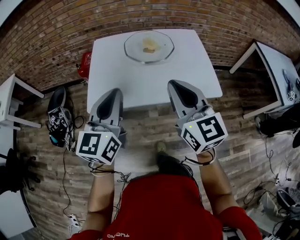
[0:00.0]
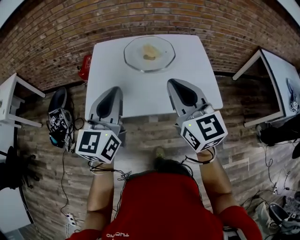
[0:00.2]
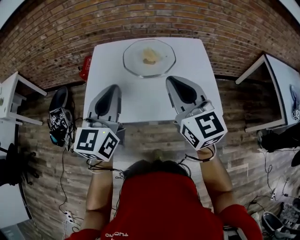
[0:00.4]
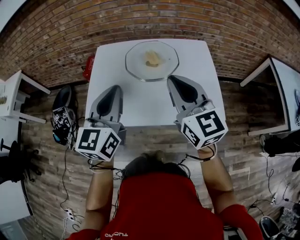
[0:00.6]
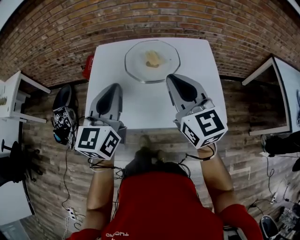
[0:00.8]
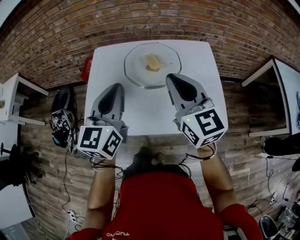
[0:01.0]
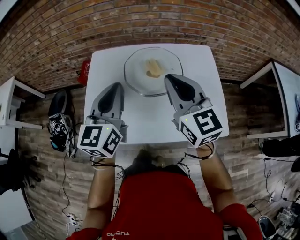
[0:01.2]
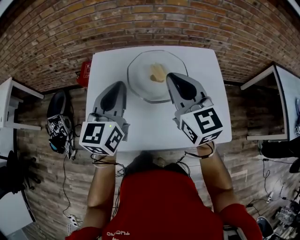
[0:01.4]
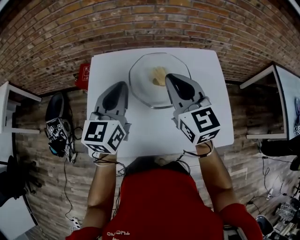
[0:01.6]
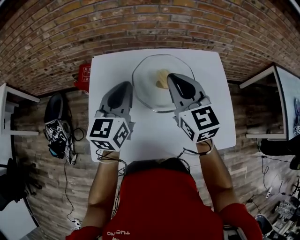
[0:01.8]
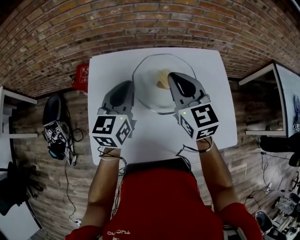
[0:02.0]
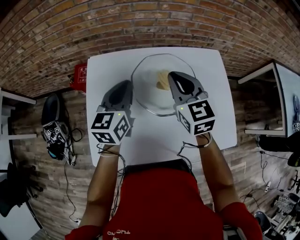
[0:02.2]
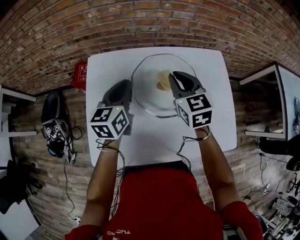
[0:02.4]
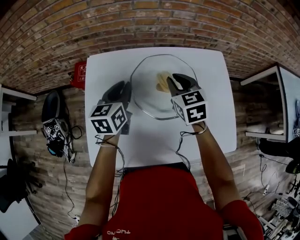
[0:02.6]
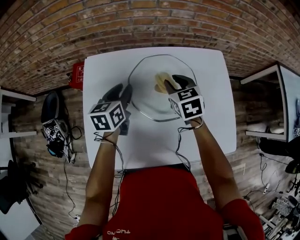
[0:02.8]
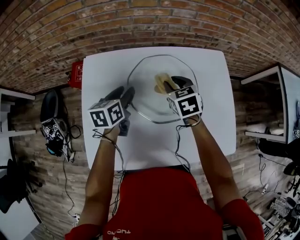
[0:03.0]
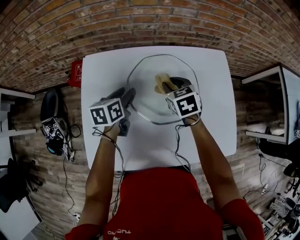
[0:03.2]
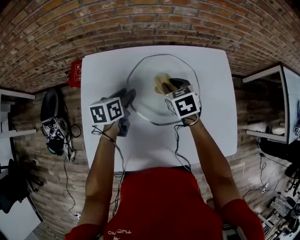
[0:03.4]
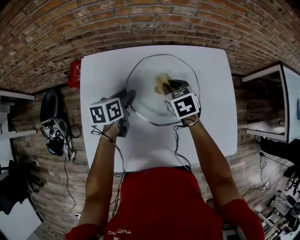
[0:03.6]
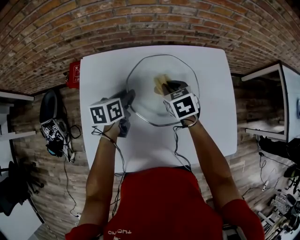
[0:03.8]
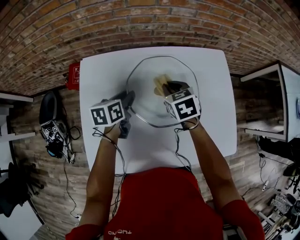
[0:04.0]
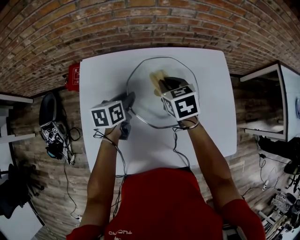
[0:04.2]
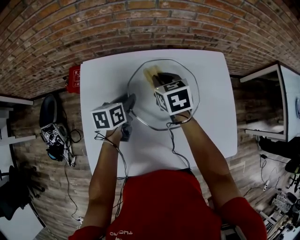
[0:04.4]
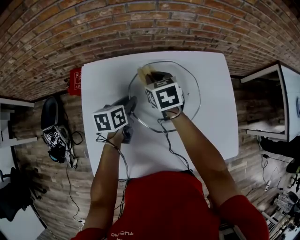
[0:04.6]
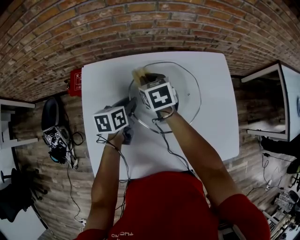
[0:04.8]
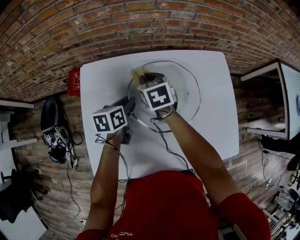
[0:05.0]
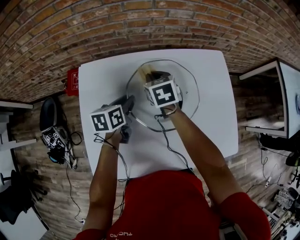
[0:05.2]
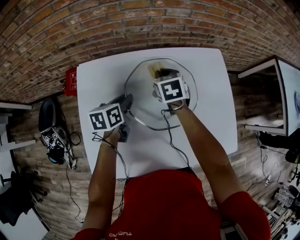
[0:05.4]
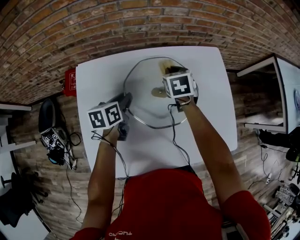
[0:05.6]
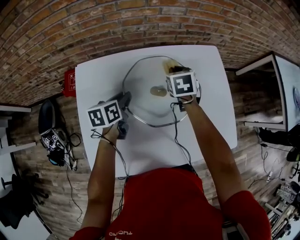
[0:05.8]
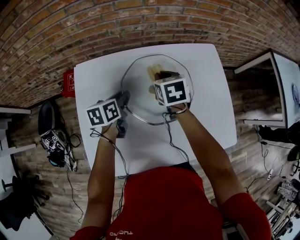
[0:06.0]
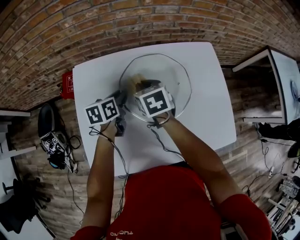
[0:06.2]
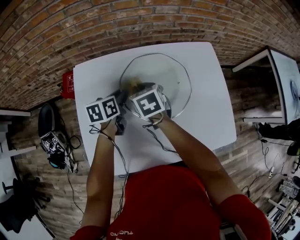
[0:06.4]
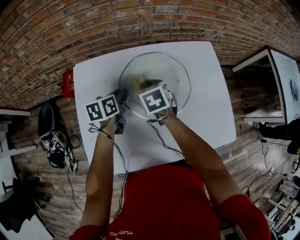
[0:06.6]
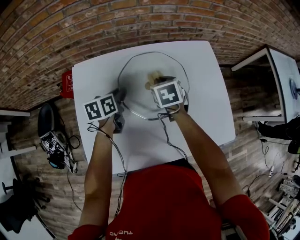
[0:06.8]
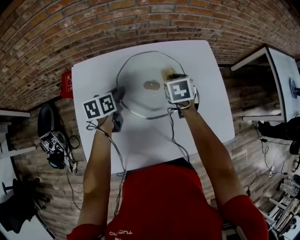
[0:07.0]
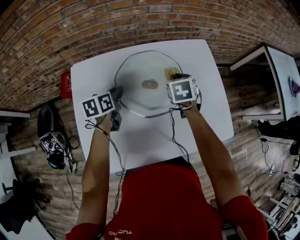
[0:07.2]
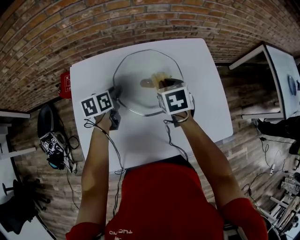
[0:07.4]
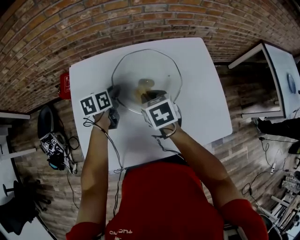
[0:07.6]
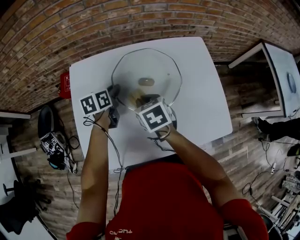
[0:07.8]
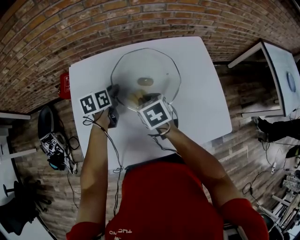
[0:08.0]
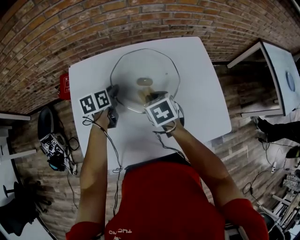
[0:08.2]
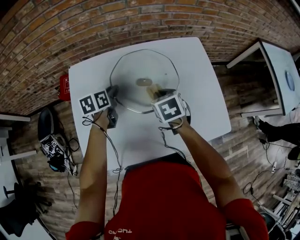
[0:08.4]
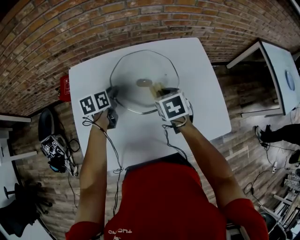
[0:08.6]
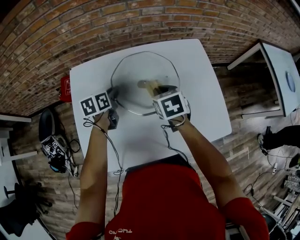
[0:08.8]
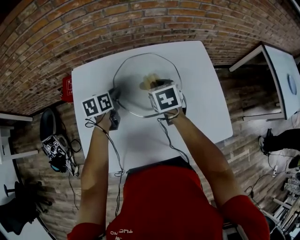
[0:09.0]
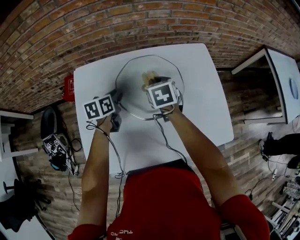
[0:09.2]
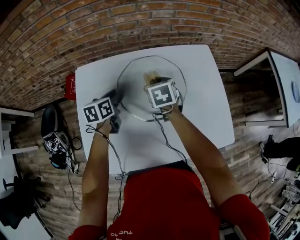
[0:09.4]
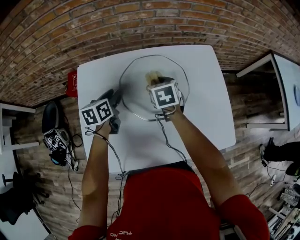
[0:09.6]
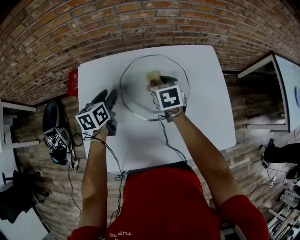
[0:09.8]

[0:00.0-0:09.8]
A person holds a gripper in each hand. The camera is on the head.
0:00.0 to 0:01.4: The two grippers go some 30 cm forward.
0:01.4 to 0:02.8: The grippers both shift downward and forward by about 25 cm. The left gripper turns by roughly 30 degrees, and opens its fingers, while the right gripper angles its fingers downward, by about 30 degrees, and opens up.
0:02.8 to 0:04.2: The left gripper travels downward by approximately 5 cm.
0:04.2 to 0:05.6: The right gripper goes some 10 cm forward and to the right.
0:05.6 to 0:07.0: The right gripper is displaced backward and to the right by approximately 10 cm.
0:07.0 to 0:08.4: The right gripper moves backward, approximately 10 cm, and reaches some 10 cm to the left, then returns.
0:08.4 to 0:09.8: The right gripper goes approximately 10 cm forward, and opens up; the left gripper ends up approximately 5 cm from where it was.

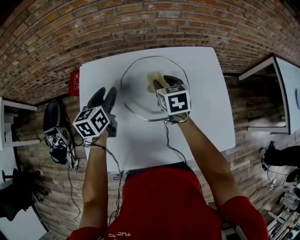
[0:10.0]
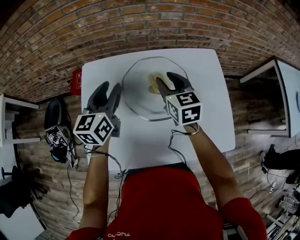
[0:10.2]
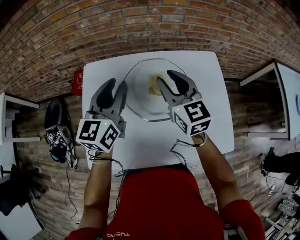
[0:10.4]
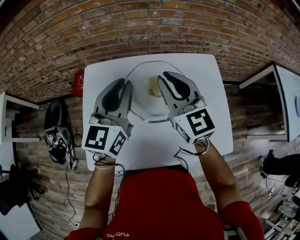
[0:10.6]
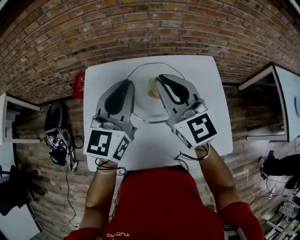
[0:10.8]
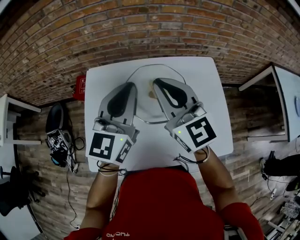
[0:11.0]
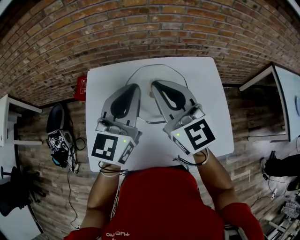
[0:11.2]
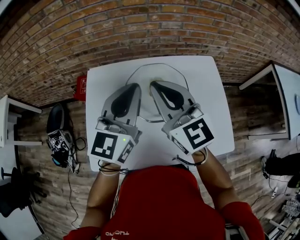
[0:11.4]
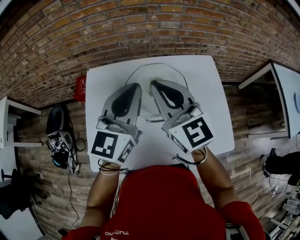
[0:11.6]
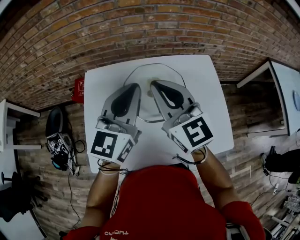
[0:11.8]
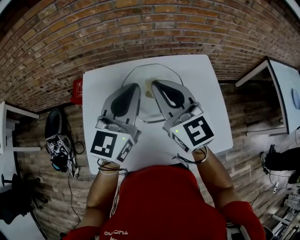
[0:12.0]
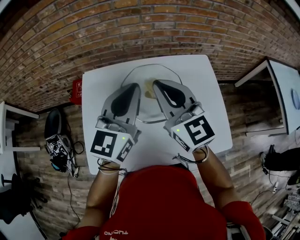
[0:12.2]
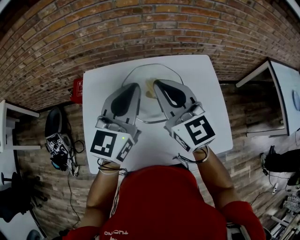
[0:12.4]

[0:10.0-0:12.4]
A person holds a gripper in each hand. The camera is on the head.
0:10.0 to 0:11.2: The left gripper moves upward, to the right and backward, about 25 cm, swivels roughly 40 degrees, and closes. Meanwhile the right gripper goes some 25 cm upward and backward, points its fingers some 40 degrees further upward, and closes its fingers.
0:11.2 to 0:12.4: The grippers make only small movements.

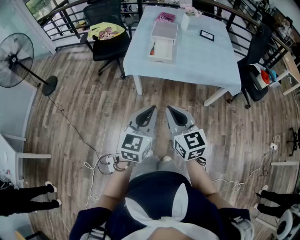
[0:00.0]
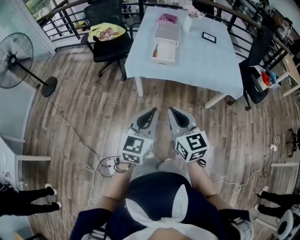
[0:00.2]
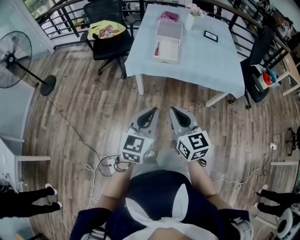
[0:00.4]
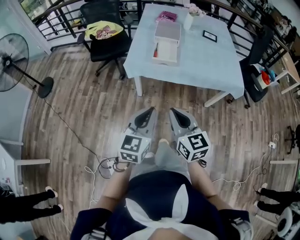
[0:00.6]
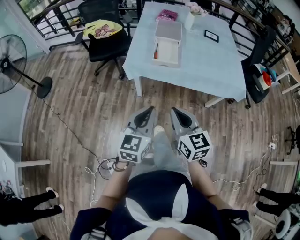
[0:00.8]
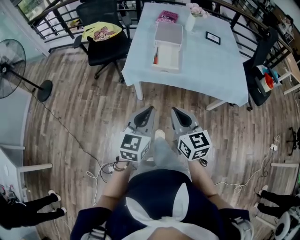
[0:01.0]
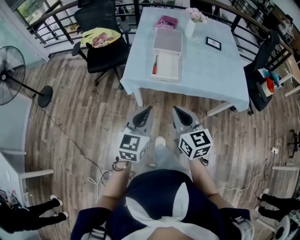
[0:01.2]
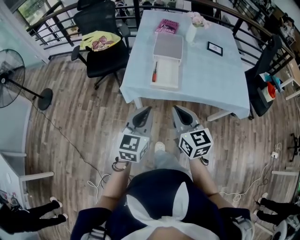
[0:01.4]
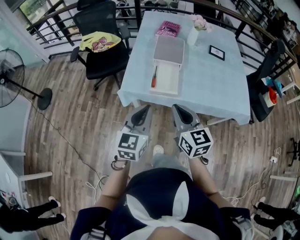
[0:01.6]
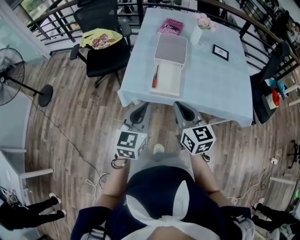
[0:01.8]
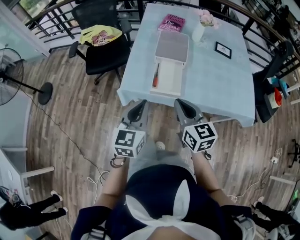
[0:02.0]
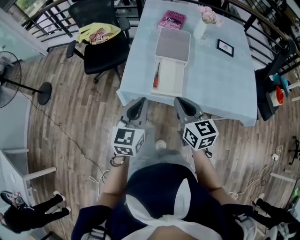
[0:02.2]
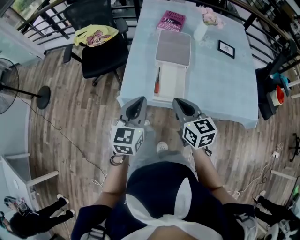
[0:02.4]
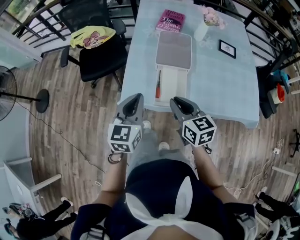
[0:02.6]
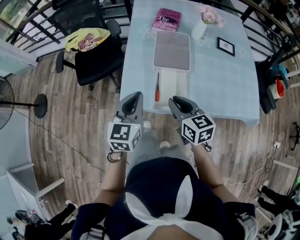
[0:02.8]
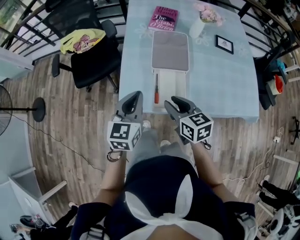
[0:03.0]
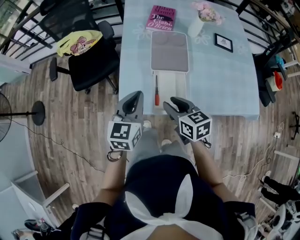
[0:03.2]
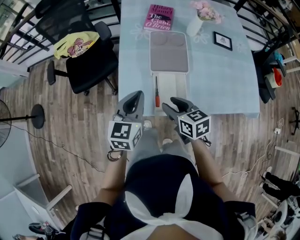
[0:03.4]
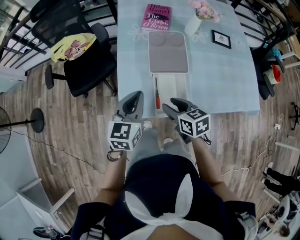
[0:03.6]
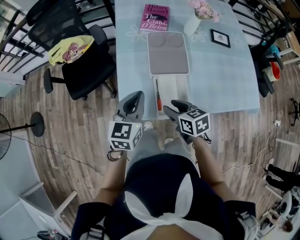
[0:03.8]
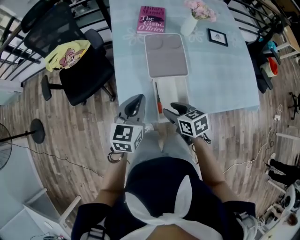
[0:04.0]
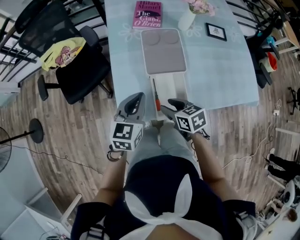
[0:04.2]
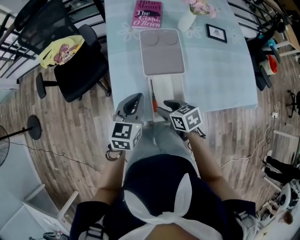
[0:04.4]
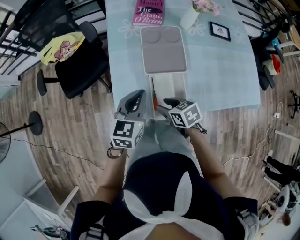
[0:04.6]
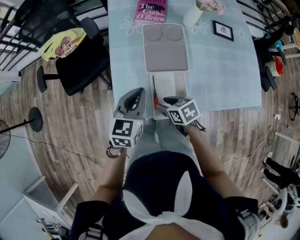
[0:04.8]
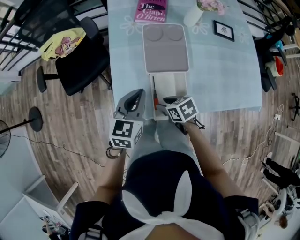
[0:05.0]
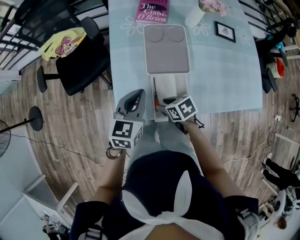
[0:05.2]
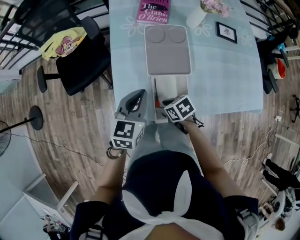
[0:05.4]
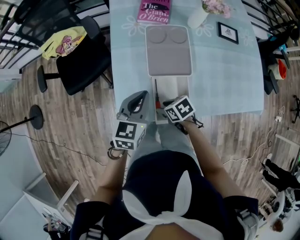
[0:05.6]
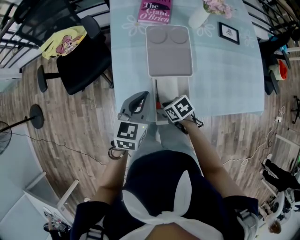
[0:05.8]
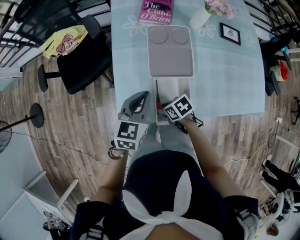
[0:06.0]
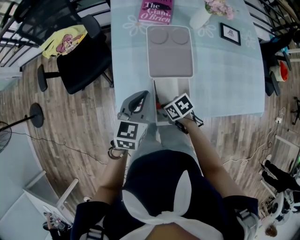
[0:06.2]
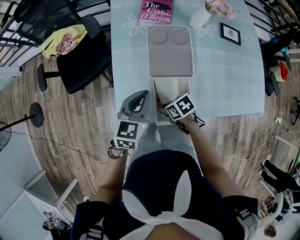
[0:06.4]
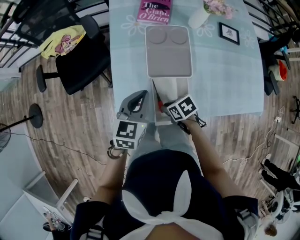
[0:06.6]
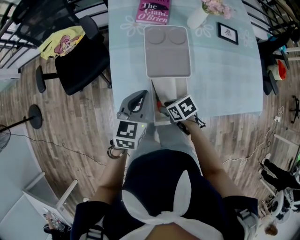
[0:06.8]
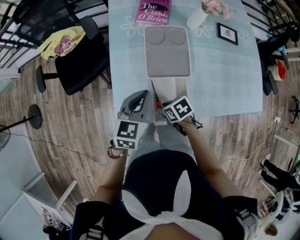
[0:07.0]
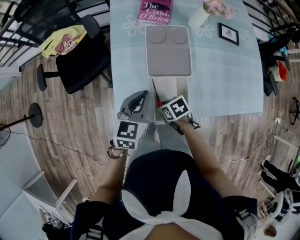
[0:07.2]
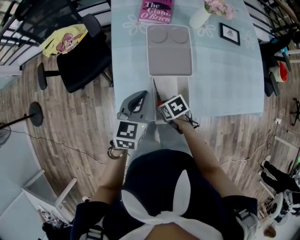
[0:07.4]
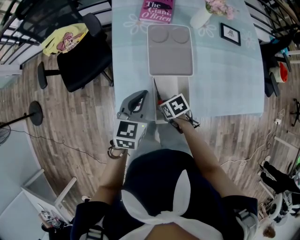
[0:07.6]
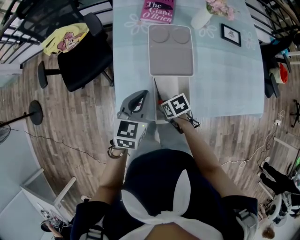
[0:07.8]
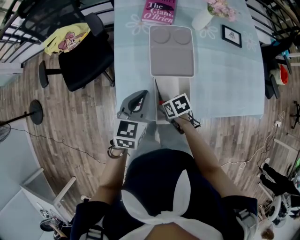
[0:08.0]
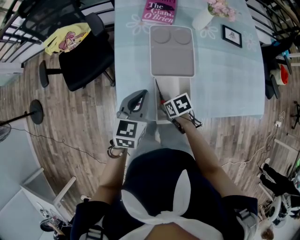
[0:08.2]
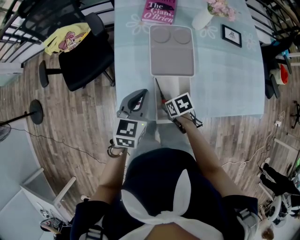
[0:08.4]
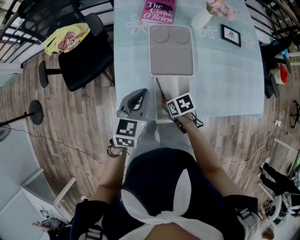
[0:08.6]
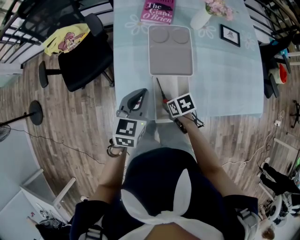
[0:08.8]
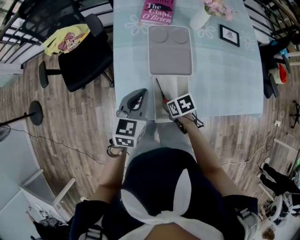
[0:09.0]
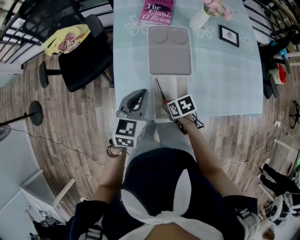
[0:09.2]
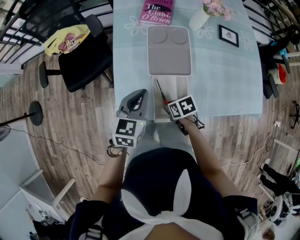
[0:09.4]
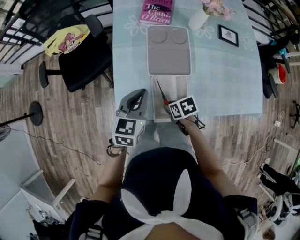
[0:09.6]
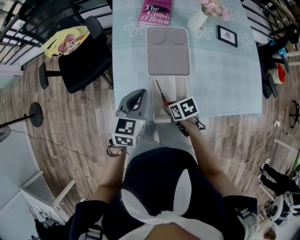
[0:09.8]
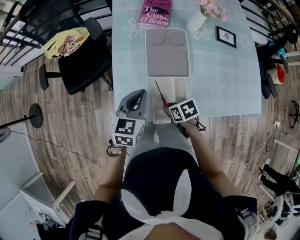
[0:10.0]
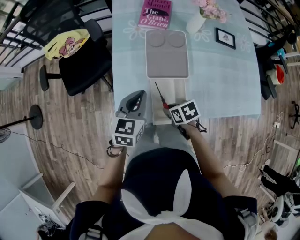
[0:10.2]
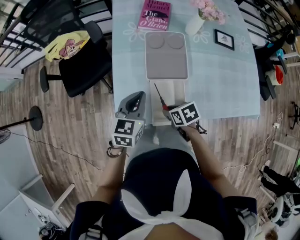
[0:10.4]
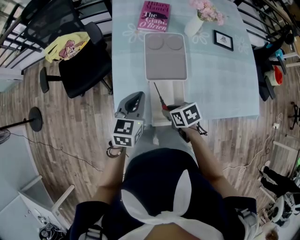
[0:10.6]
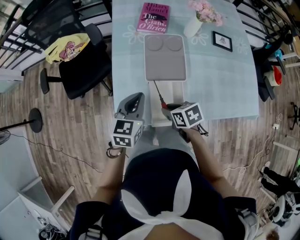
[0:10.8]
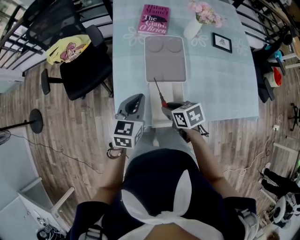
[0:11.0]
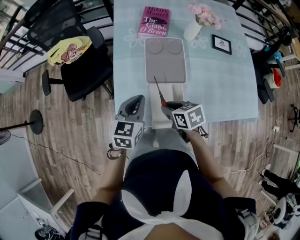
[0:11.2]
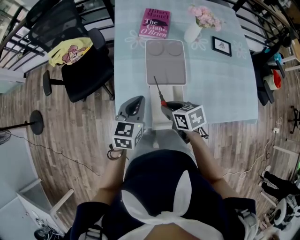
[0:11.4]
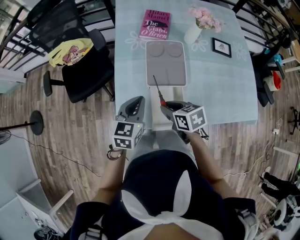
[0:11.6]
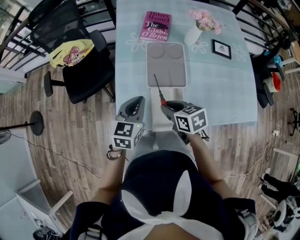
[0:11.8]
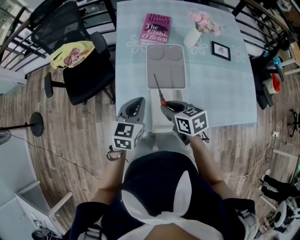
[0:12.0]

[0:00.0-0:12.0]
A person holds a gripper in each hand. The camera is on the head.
0:00.0 to 0:01.6: Both grippers travel together forward, approximately 35 cm.
0:01.6 to 0:03.0: The right gripper travels forward and downward by approximately 25 cm, changes its angle by roughly 20 degrees, and opens its fingers; the left gripper travels forward by roughly 25 cm.
0:03.0 to 0:04.4: The right gripper is displaced downward and forward by roughly 10 cm, and rotates about 20 degrees. Meanwhile the left gripper goes some 10 cm forward and downward.
0:04.4 to 0:06.0: The right gripper is displaced downward by roughly 10 cm, and turns by some 30 degrees.
0:06.0 to 0:09.0: The grippers make only small movements.
0:09.0 to 0:10.4: The grippers move only a little.
0:10.4 to 0:12.0: The right gripper heads upward and forward, covering roughly 15 cm, and turns by some 20 degrees.
